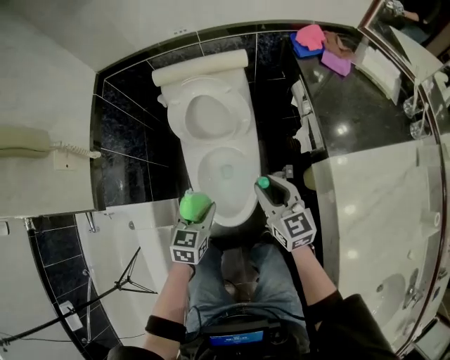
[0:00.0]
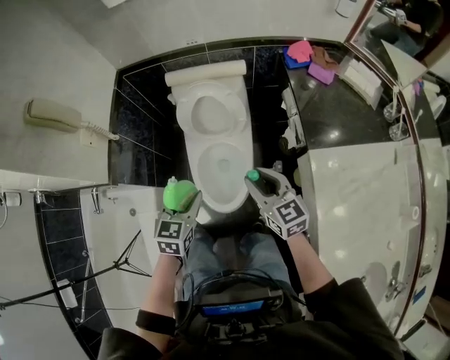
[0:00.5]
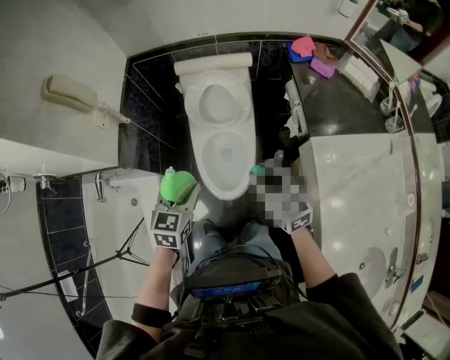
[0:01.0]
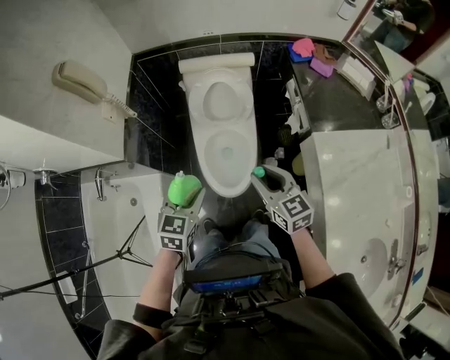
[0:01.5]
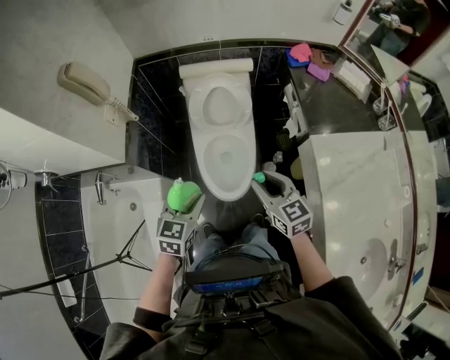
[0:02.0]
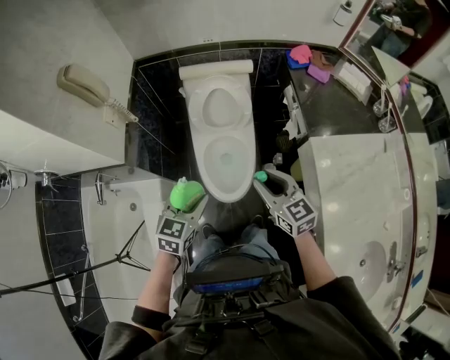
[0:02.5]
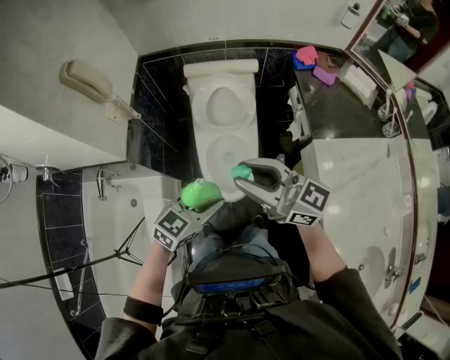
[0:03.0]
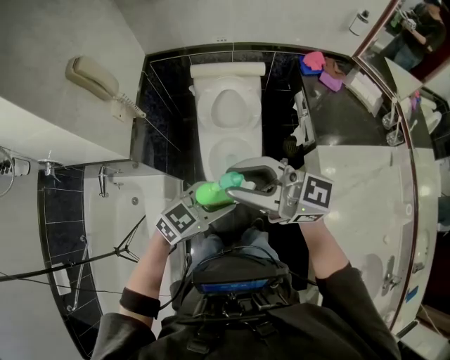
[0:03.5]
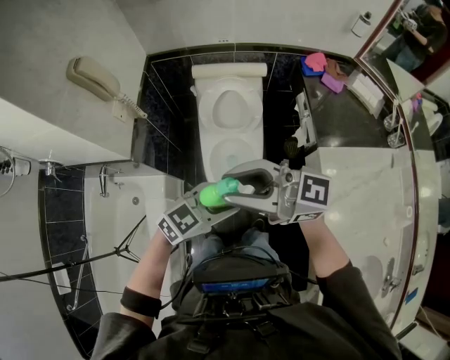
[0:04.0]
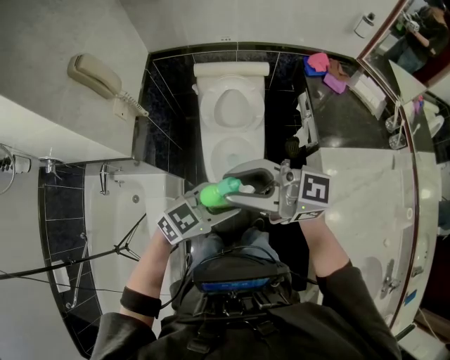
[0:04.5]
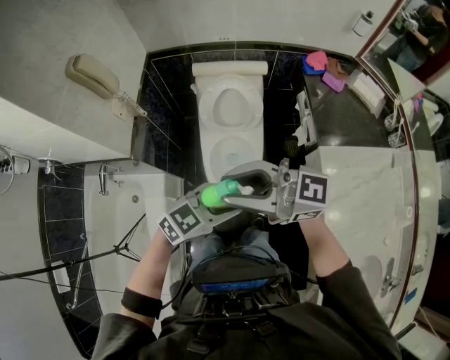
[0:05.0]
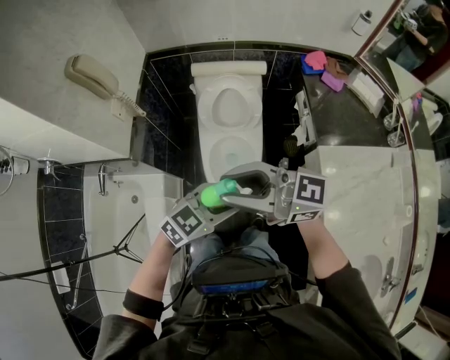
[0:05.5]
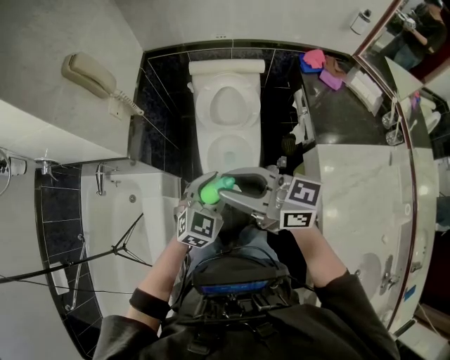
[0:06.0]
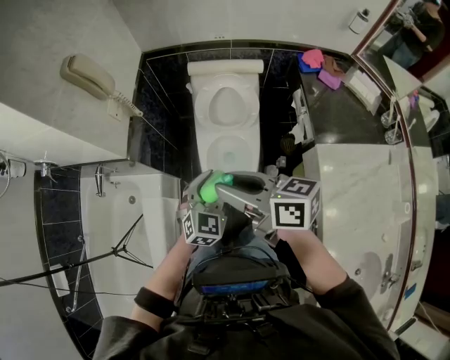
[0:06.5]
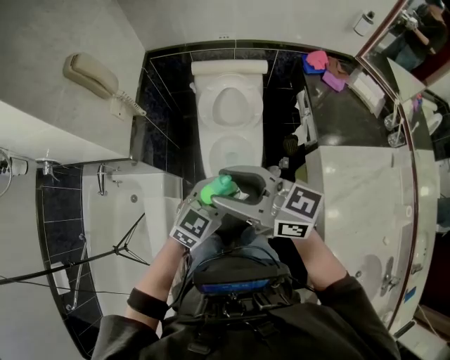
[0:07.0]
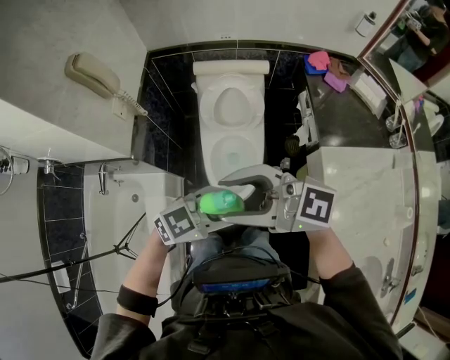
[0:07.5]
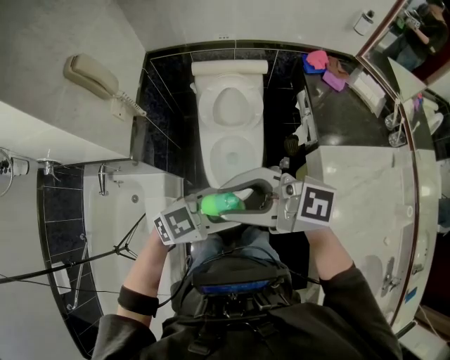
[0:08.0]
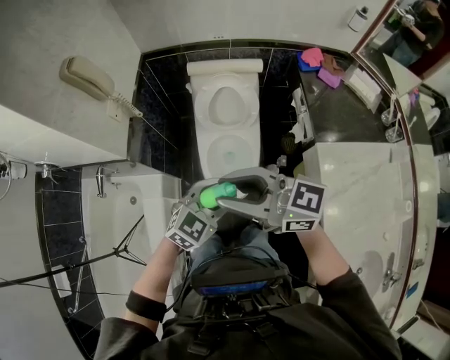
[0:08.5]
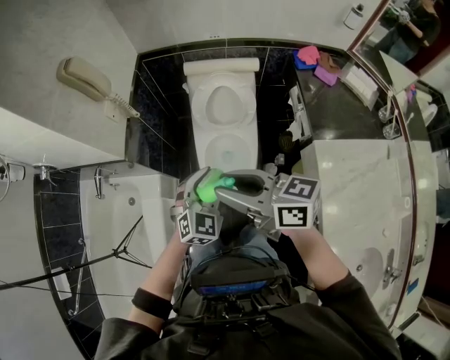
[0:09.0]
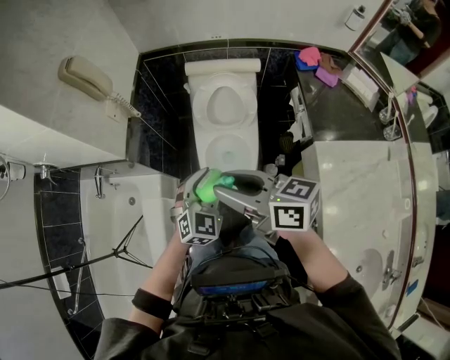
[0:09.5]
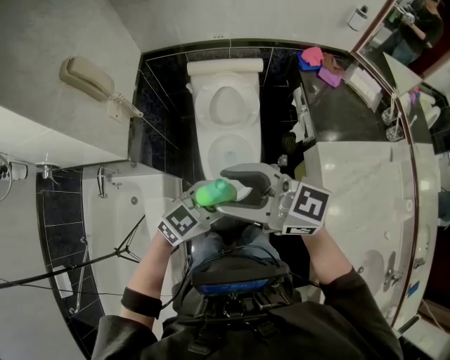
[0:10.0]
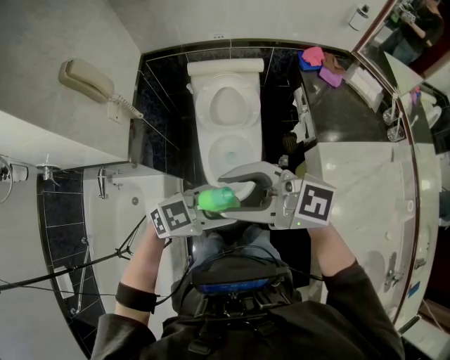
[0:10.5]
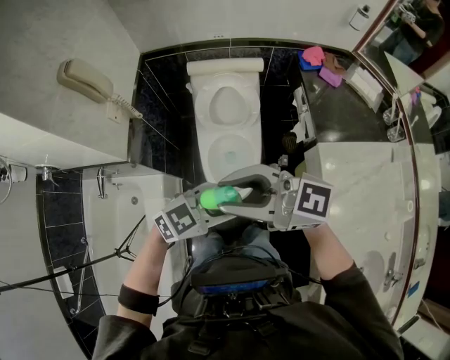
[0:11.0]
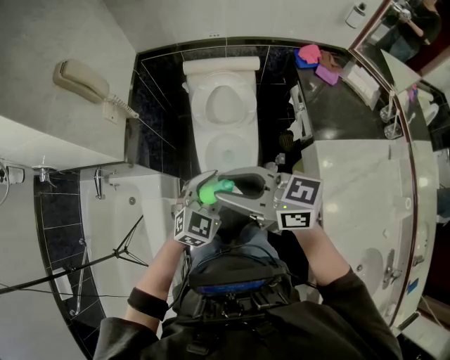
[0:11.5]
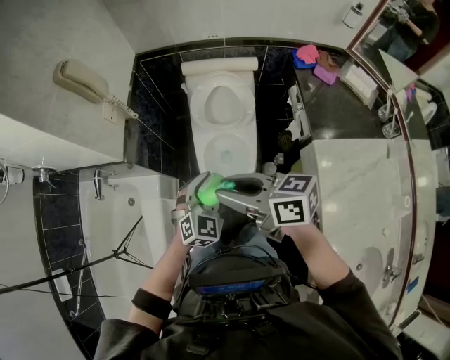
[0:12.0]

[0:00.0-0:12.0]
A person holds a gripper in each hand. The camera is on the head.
0:00.0 to 0:02.0: The grippers both shift upward, backward and to the left by roughly 25 cm.
0:02.0 to 0:04.0: The right gripper travels upward by roughly 20 cm, and points its fingers approximately 40 degrees further upward. Meanwhile the left gripper changes place by some 15 cm, and swivels roughly 40 degrees.
0:04.0 to 0:06.0: The left gripper changes place by about 10 cm, and swivels approximately 30 degrees, while the right gripper heads downward, covering approximately 5 cm, and turns by roughly 20 degrees.
0:06.0 to 0:08.0: The right gripper travels upward by approximately 5 cm, and swivels roughly 30 degrees; the left gripper shifts by roughly 10 cm, and rotates roughly 50 degrees.
0:08.0 to 0:10.0: The right gripper moves approximately 10 cm downward and comes back, and opens.
0:10.0 to 0:12.0: Both grippers move downward, about 5 cm. The left gripper swivels some 40 degrees; the right gripper rotates approximately 40 degrees, and closes its fingers.

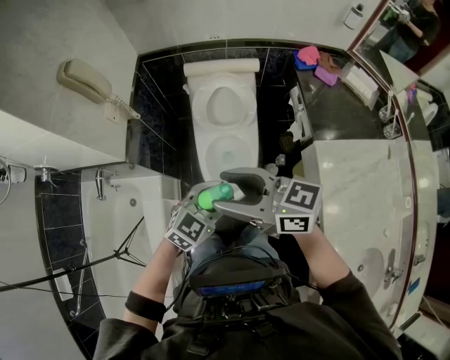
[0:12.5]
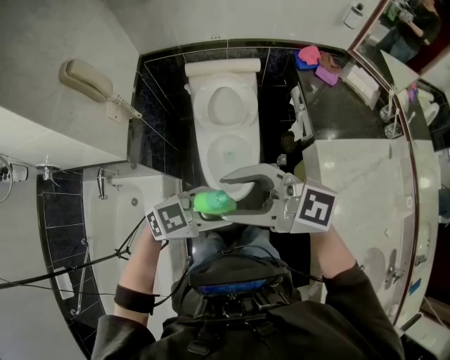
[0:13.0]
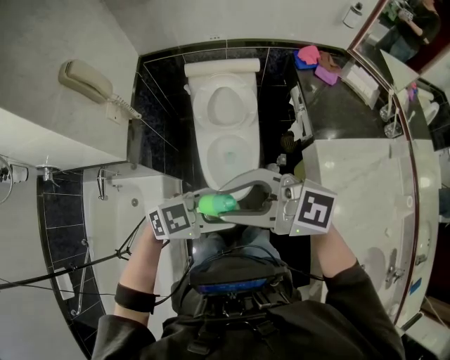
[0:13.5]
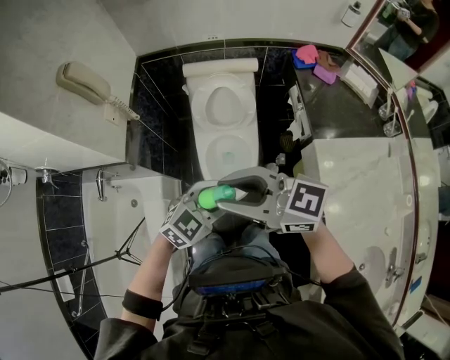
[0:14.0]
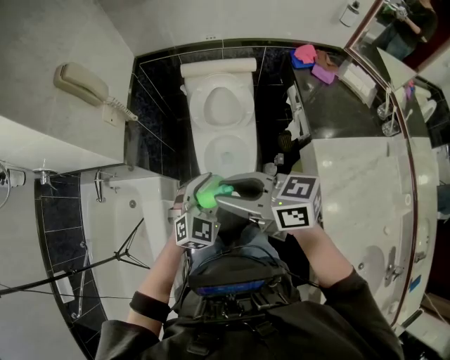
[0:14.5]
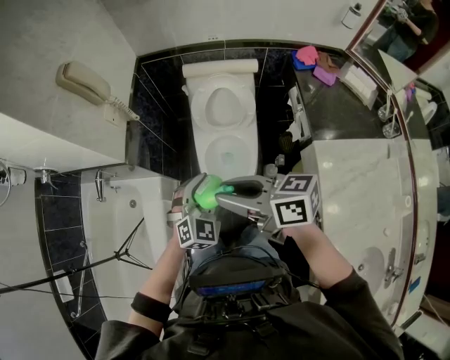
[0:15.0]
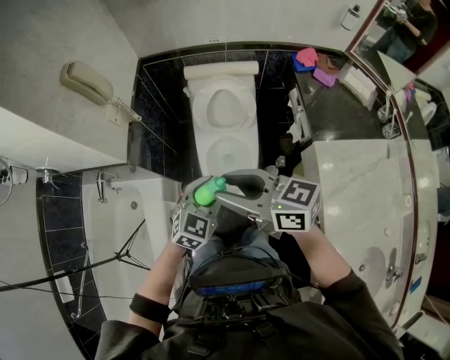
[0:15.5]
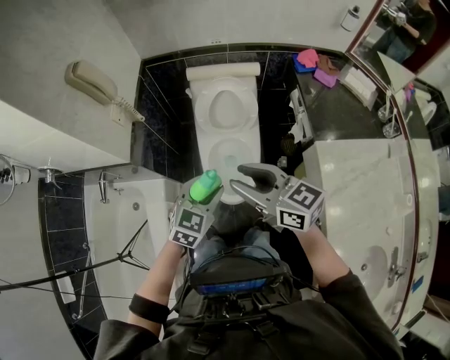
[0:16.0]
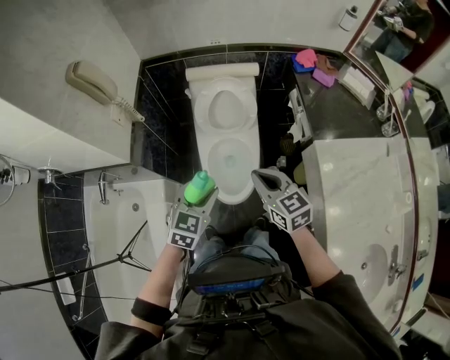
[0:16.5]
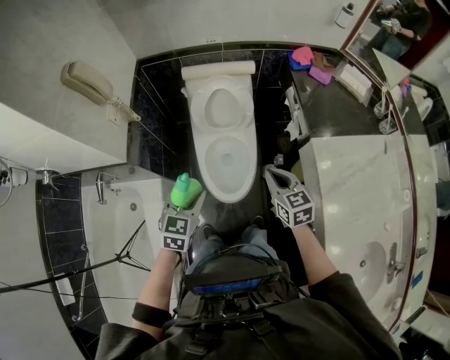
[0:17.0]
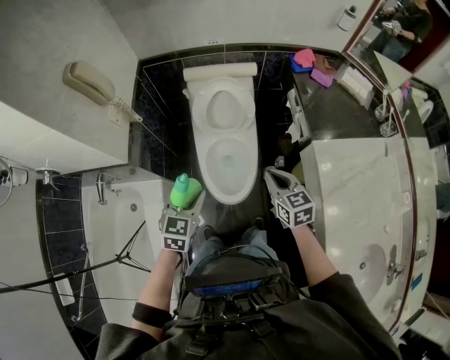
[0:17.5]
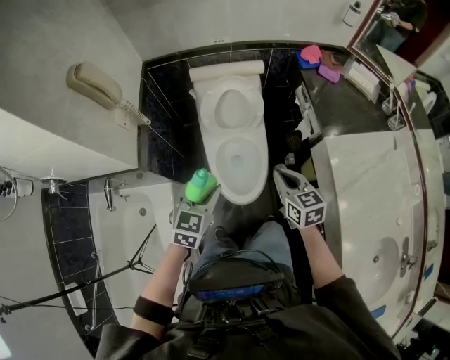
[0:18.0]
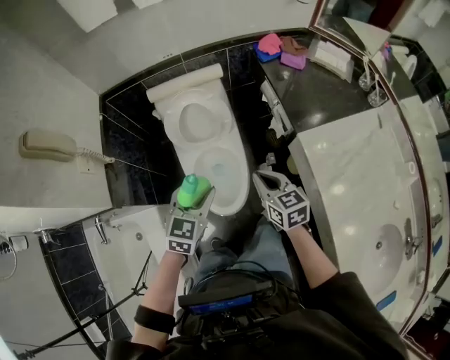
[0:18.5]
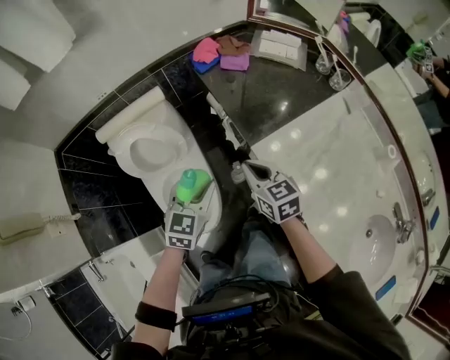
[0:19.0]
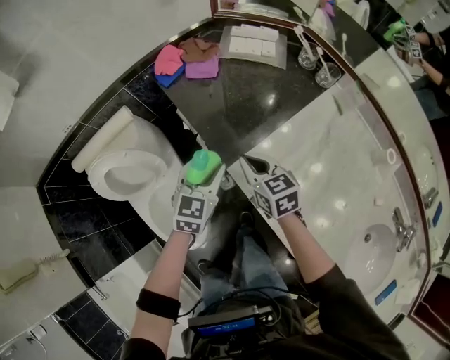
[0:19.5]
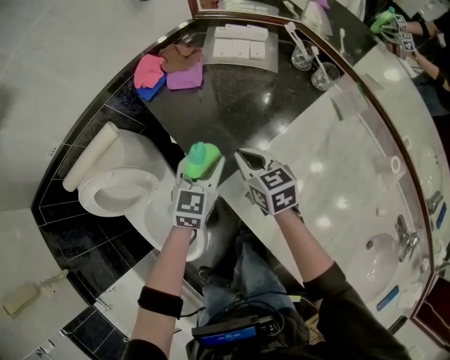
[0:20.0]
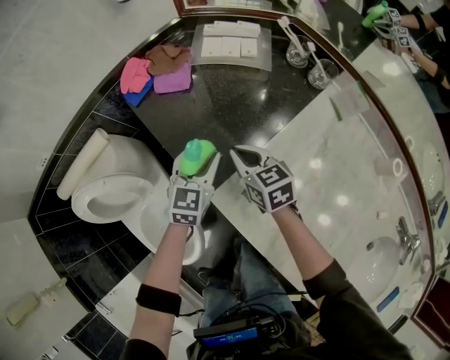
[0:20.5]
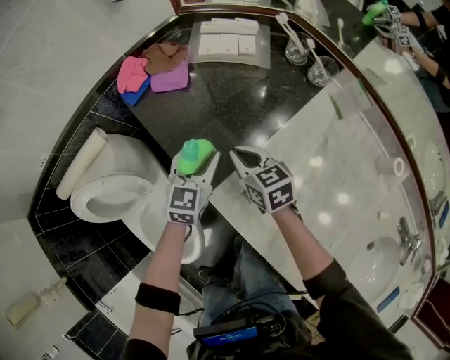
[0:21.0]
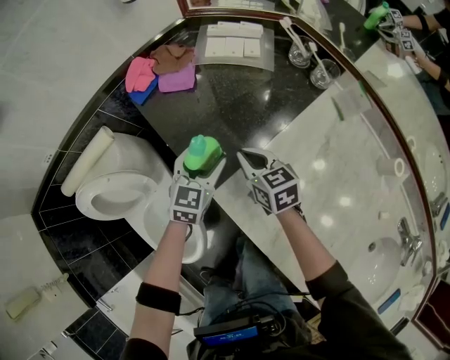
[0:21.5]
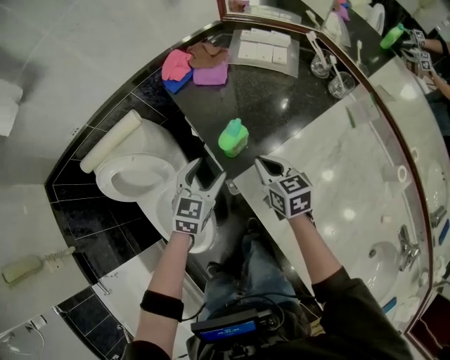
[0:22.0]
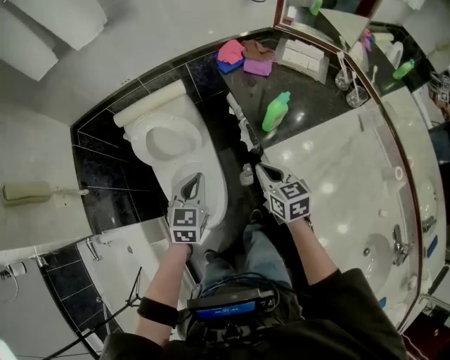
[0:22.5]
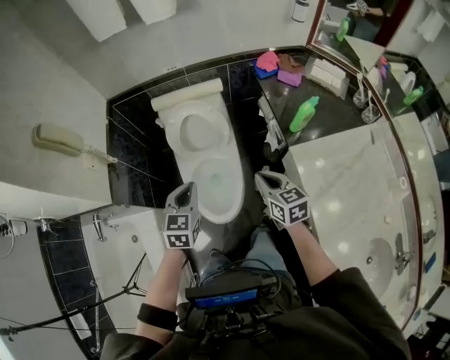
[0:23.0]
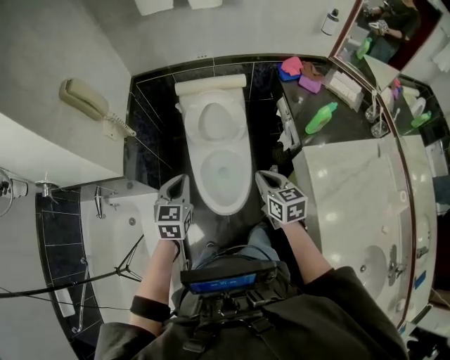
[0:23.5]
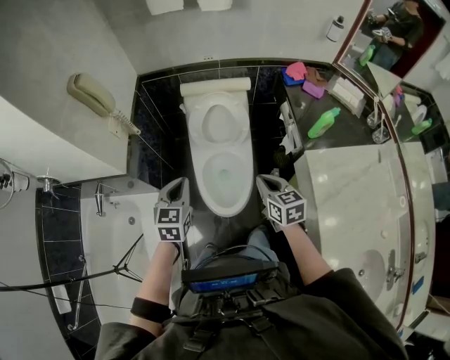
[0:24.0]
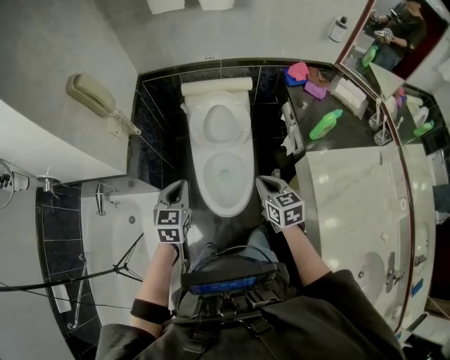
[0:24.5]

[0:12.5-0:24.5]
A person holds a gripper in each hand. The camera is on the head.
0:12.5 to 0:14.5: The left gripper turns by about 30 degrees; the right gripper moves roughly 5 cm upward and comes back, and closes its fingers.
0:14.5 to 0:16.5: The right gripper heads downward and to the right, covering roughly 15 cm, swivels some 40 degrees, and closes. The left gripper swivels some 20 degrees.
0:16.5 to 0:18.5: The left gripper is displaced forward and to the right by approximately 10 cm. The right gripper is displaced to the right, downward and forward by about 15 cm.
0:18.5 to 0:20.5: The pair of grippers is taken forward and to the right, roughly 50 cm. The left gripper rotates about 20 degrees.
0:20.5 to 0:22.5: The right gripper moves backward, to the left and upward, about 25 cm; the left gripper goes roughly 40 cm to the left, backward and upward, turns by roughly 30 degrees, and closes up.
0:22.5 to 0:24.5: Both grippers move to the left, approximately 25 cm. The left gripper rotates roughly 20 degrees.

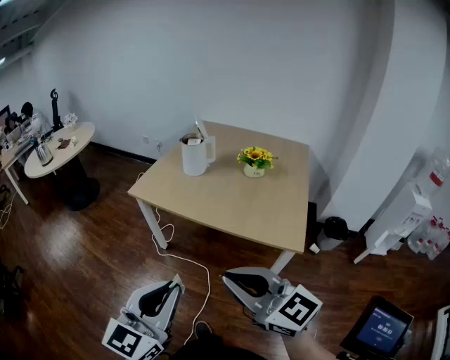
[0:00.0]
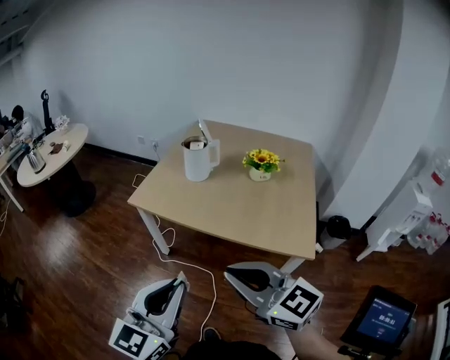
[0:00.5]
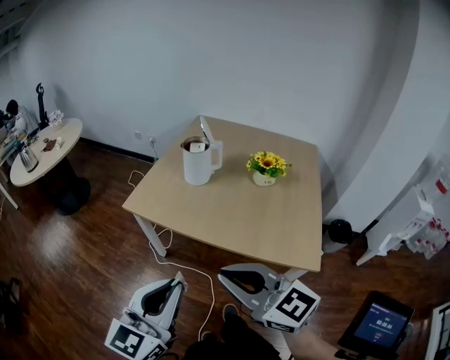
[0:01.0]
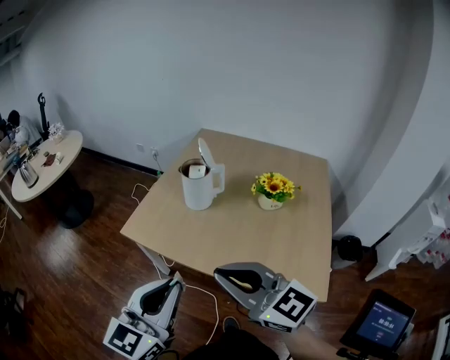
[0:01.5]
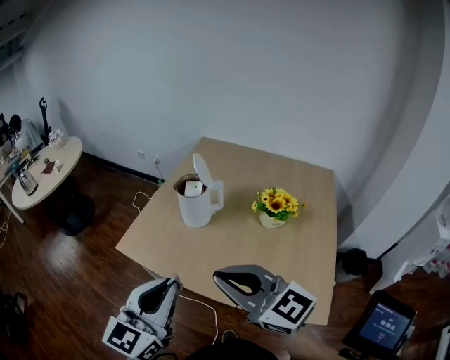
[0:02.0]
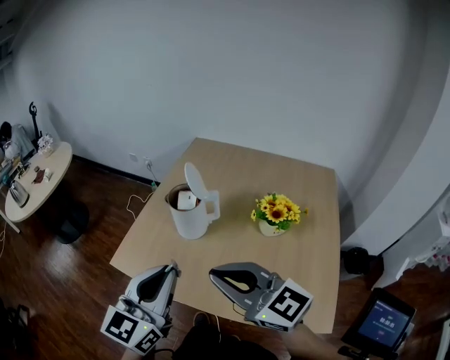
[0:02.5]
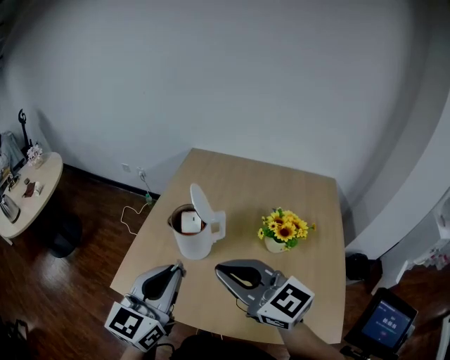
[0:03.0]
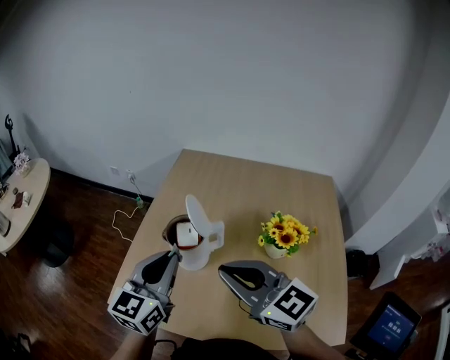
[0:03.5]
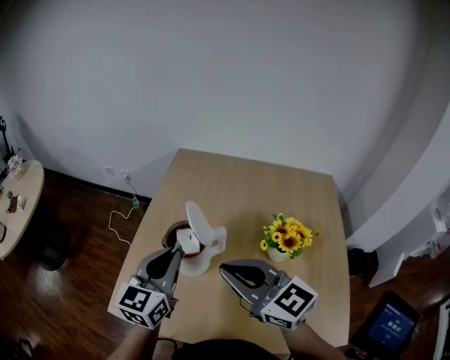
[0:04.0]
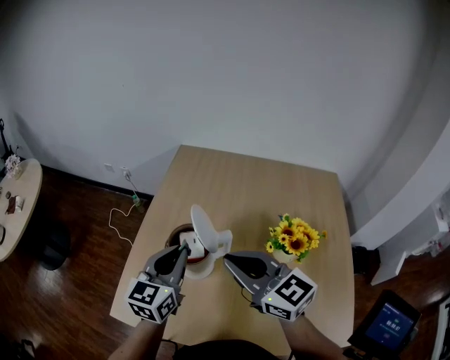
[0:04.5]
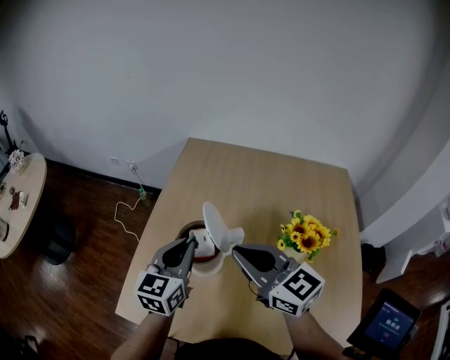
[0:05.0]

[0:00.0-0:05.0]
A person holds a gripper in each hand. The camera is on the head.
0:00.0 to 0:02.5: The pair of grippers is taken forward, about 50 cm.
0:02.5 to 0:05.0: Both grippers move forward, approximately 30 cm. The right gripper swivels approximately 20 degrees.
